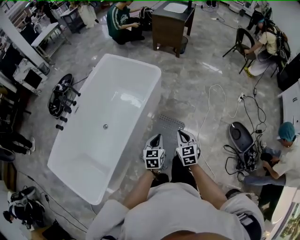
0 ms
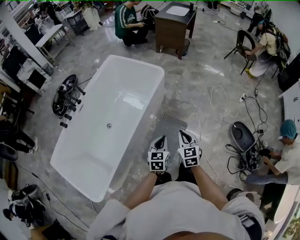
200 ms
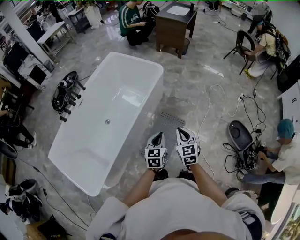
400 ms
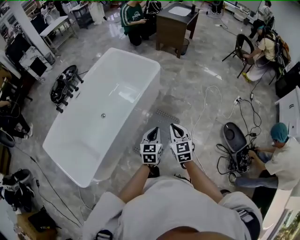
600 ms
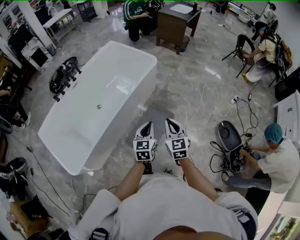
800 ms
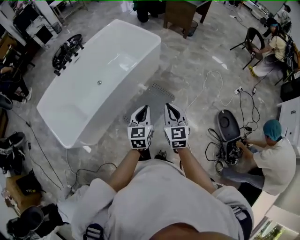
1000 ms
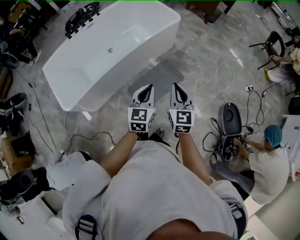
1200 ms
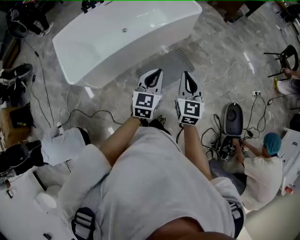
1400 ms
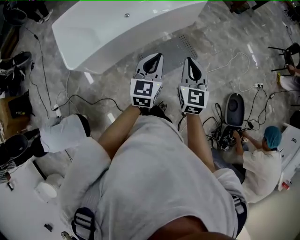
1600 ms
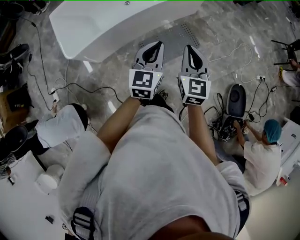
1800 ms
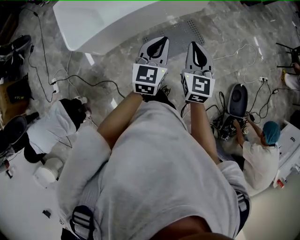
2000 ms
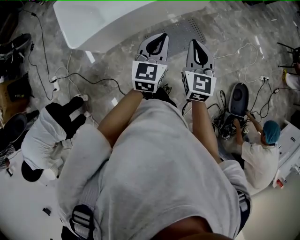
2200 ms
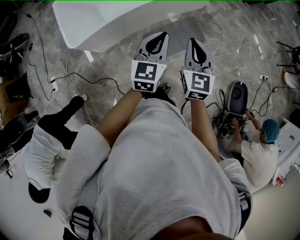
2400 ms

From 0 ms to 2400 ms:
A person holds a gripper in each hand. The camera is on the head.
From 0 ms to 1200 ms: Both grippers move backward, upward and to the right, roughly 20 cm. The left gripper swivels roughly 20 degrees. Meanwhile the right gripper rotates approximately 20 degrees.
From 1200 ms to 2400 ms: Both grippers travel together to the left, roughly 10 cm.

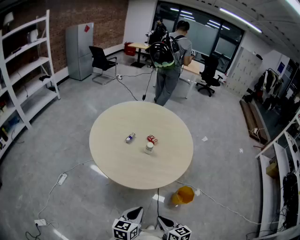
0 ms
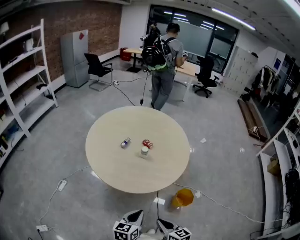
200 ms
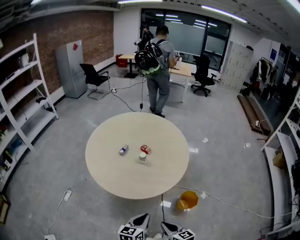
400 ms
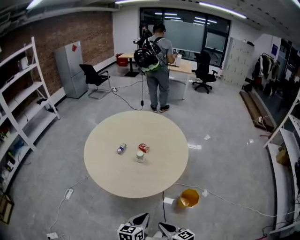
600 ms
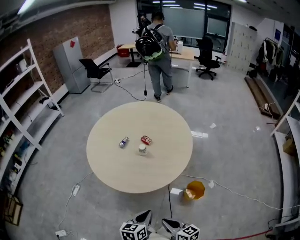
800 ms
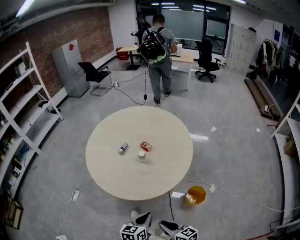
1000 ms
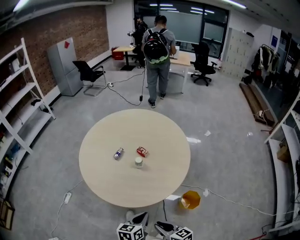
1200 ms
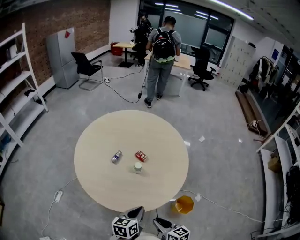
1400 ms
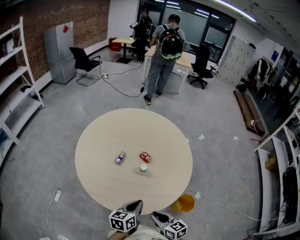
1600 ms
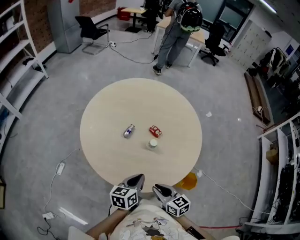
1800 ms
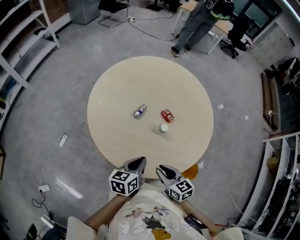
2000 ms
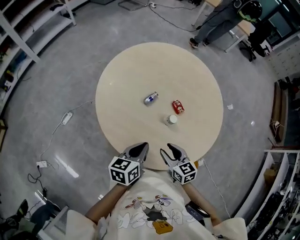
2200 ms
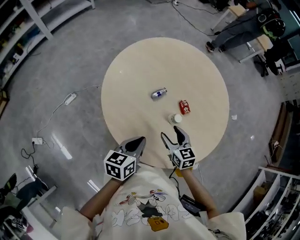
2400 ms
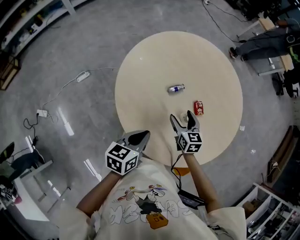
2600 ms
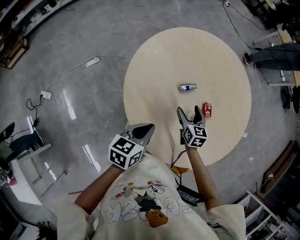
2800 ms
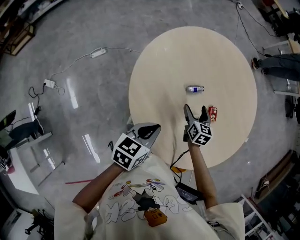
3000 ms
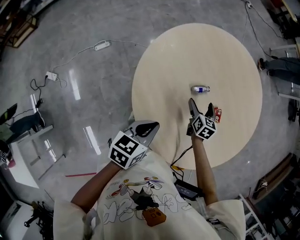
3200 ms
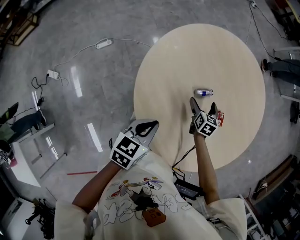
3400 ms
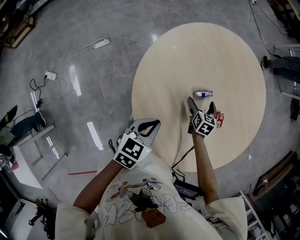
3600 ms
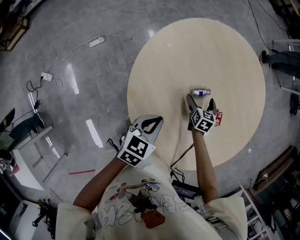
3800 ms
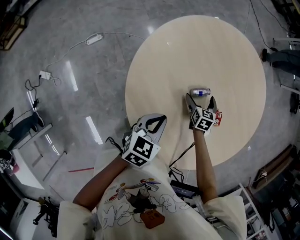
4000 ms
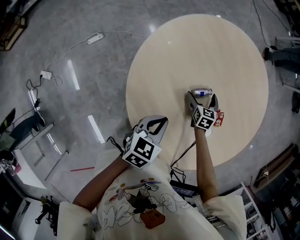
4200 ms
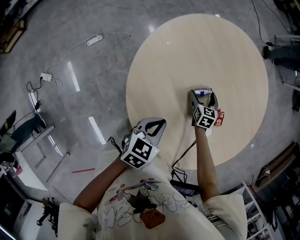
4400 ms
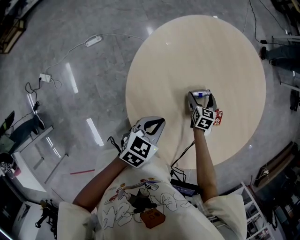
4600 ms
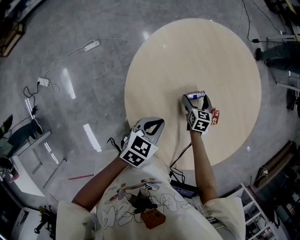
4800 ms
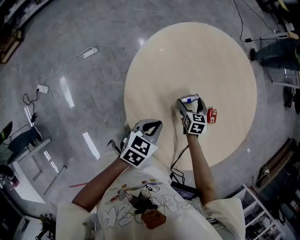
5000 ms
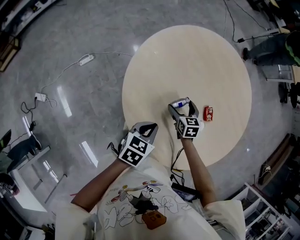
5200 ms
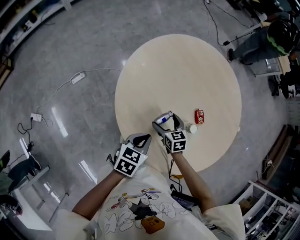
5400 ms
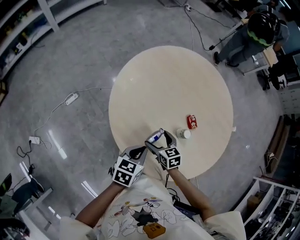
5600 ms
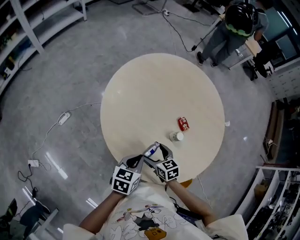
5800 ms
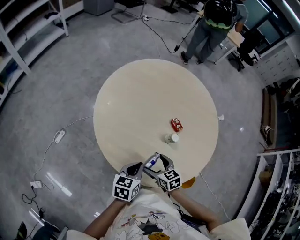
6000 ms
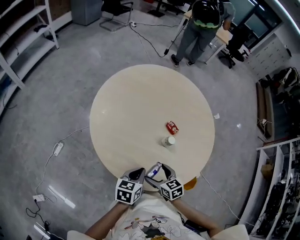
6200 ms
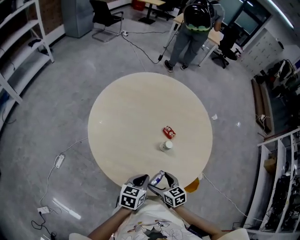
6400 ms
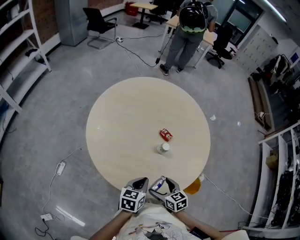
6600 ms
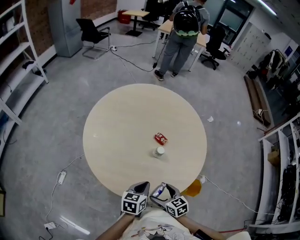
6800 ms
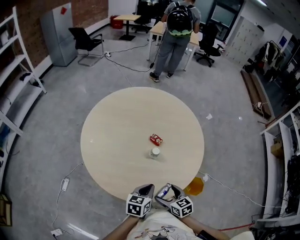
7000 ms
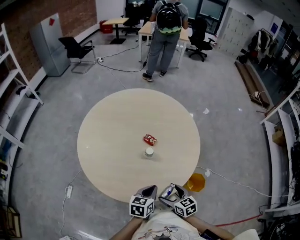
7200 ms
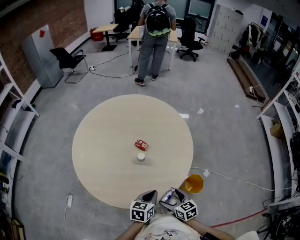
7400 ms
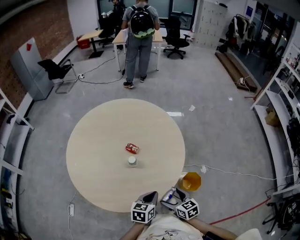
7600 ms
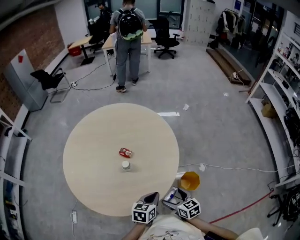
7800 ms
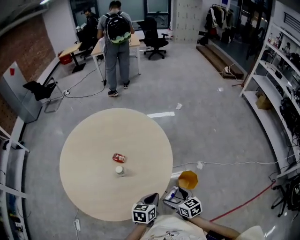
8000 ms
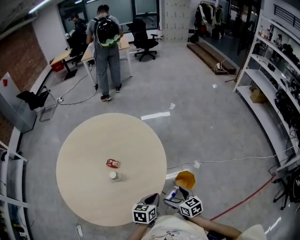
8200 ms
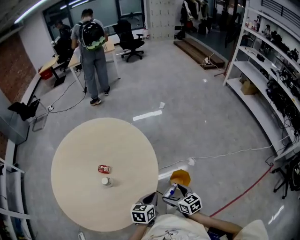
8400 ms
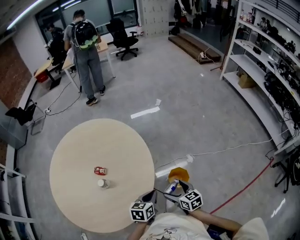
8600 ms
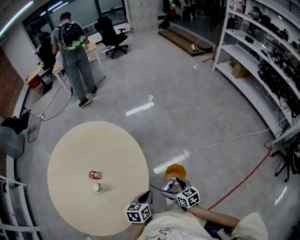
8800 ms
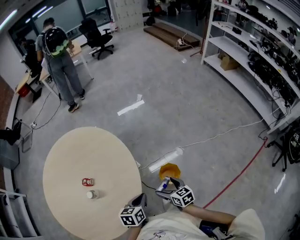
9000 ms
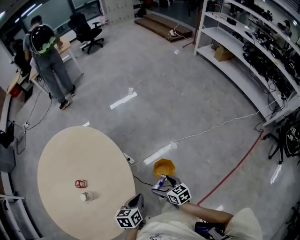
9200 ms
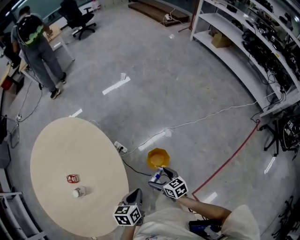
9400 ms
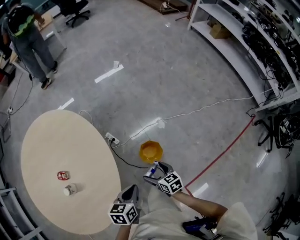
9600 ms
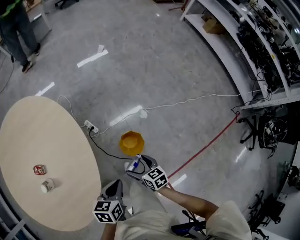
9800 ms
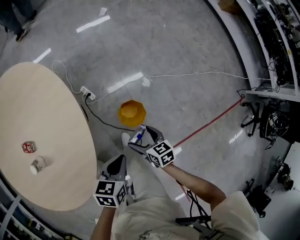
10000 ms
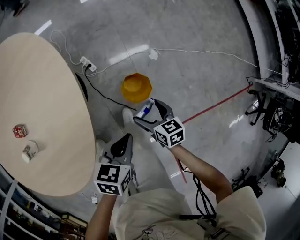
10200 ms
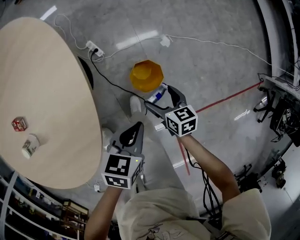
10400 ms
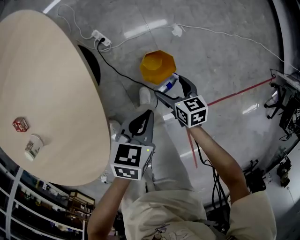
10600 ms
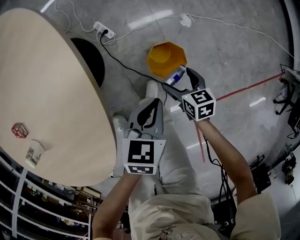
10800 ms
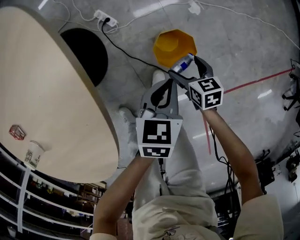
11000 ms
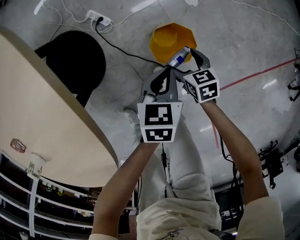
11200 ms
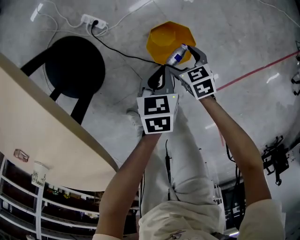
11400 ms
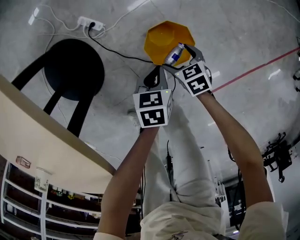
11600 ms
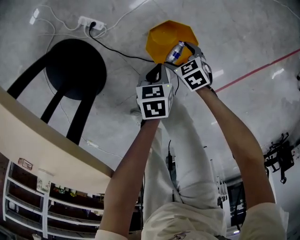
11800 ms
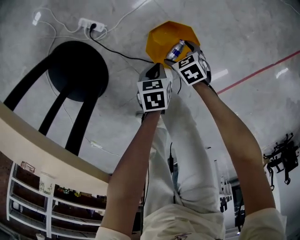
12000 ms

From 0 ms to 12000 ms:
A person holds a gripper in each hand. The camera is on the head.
From 0 ms to 1600 ms: The two grippers go roughly 20 cm forward.
From 1600 ms to 3000 ms: The left gripper heads to the left and forward, covering approximately 15 cm, and changes its angle by approximately 30 degrees, while the right gripper travels forward by approximately 35 cm, rotates roughly 20 degrees, and opens.
From 3000 ms to 4400 ms: The left gripper moves forward and downward, some 10 cm, while the right gripper shifts some 15 cm downward and forward.
From 4400 ms to 6000 ms: The left gripper goes about 5 cm backward, while the right gripper goes roughly 30 cm backward and upward.
From 6000 ms to 7600 ms: The right gripper shifts by approximately 30 cm, and rotates approximately 30 degrees, while the left gripper moves roughly 30 cm, and changes its angle by about 30 degrees.
From 7600 ms to 9000 ms: Both grippers travel together to the right and forward, roughly 20 cm. The right gripper rotates about 30 degrees.
From 9000 ms to 10400 ms: The right gripper shifts approximately 25 cm downward. The left gripper is displaced downward and to the right by approximately 25 cm.
From 10400 ms to 12000 ms: Both grippers move downward, about 40 cm. The right gripper turns by about 20 degrees. Meanwhile the left gripper swivels approximately 20 degrees.

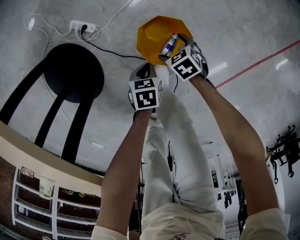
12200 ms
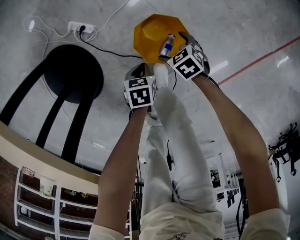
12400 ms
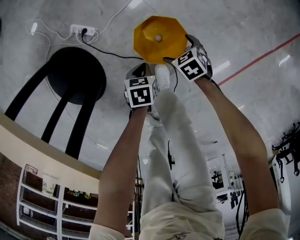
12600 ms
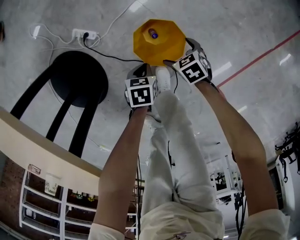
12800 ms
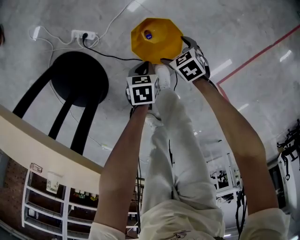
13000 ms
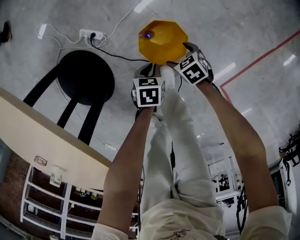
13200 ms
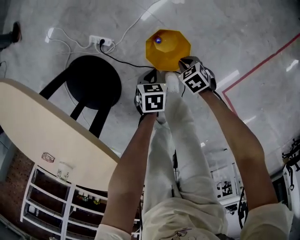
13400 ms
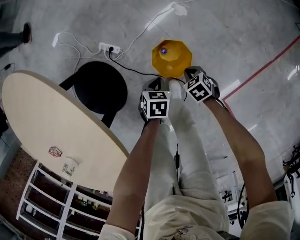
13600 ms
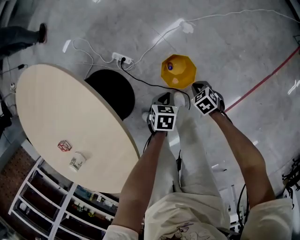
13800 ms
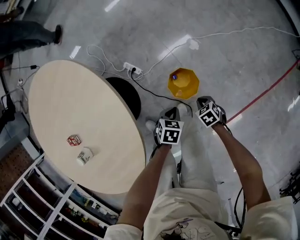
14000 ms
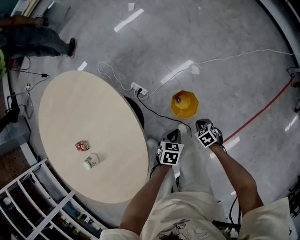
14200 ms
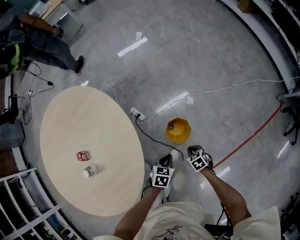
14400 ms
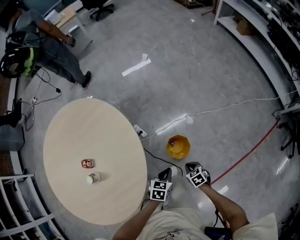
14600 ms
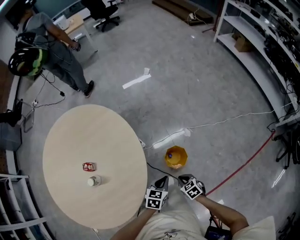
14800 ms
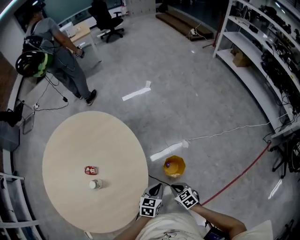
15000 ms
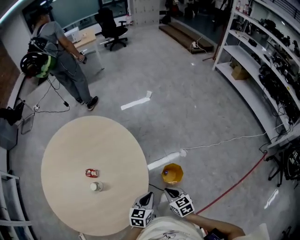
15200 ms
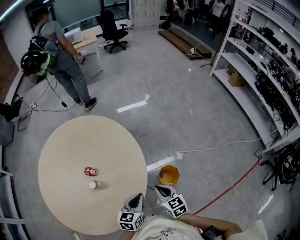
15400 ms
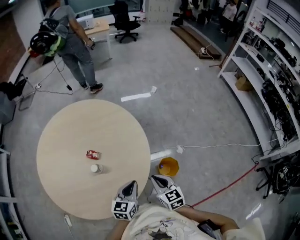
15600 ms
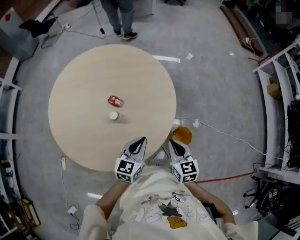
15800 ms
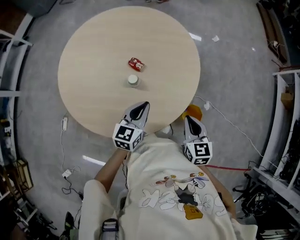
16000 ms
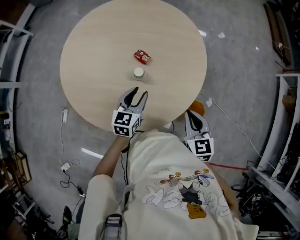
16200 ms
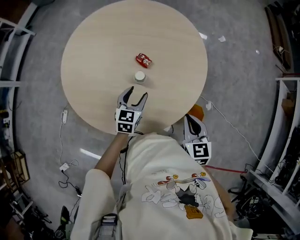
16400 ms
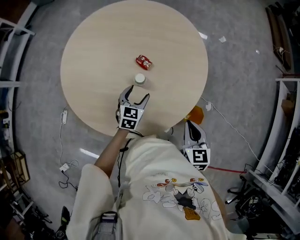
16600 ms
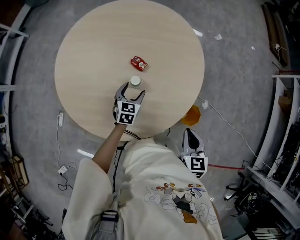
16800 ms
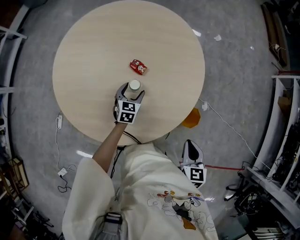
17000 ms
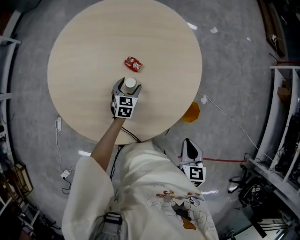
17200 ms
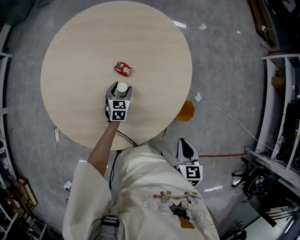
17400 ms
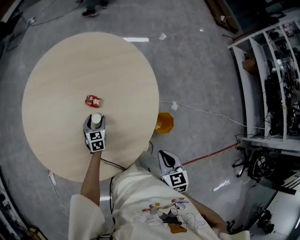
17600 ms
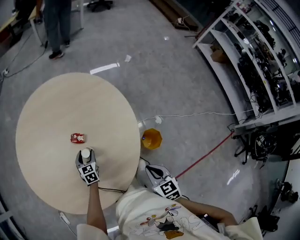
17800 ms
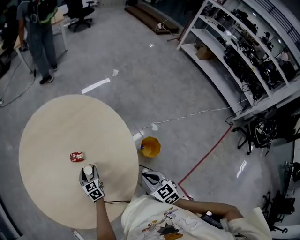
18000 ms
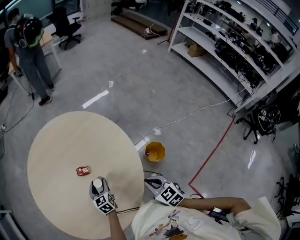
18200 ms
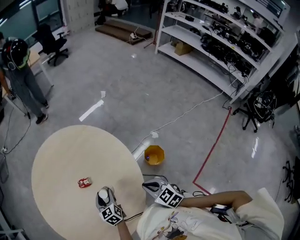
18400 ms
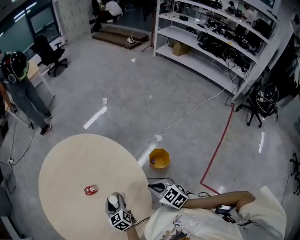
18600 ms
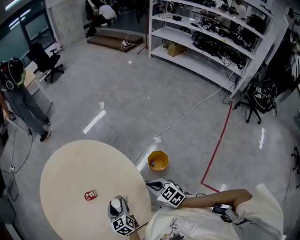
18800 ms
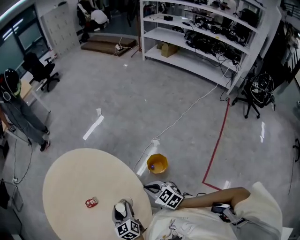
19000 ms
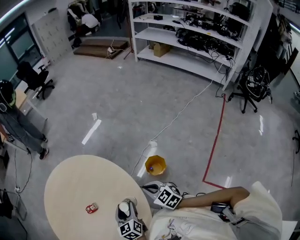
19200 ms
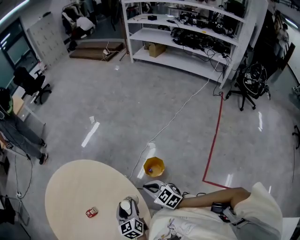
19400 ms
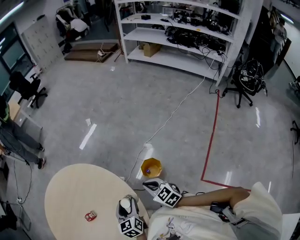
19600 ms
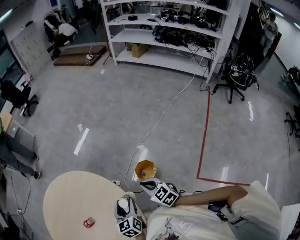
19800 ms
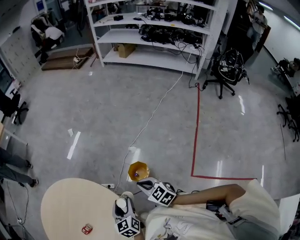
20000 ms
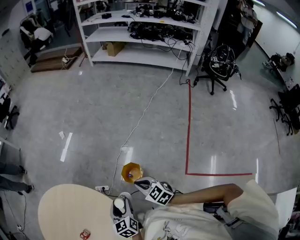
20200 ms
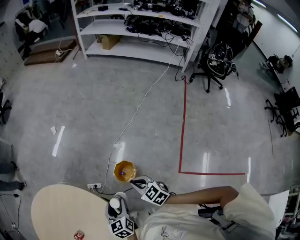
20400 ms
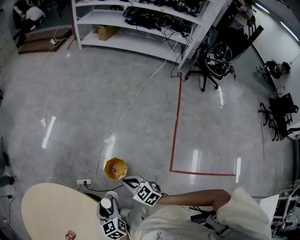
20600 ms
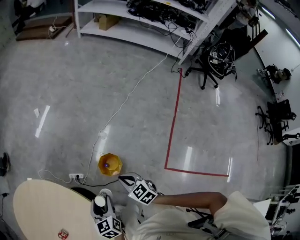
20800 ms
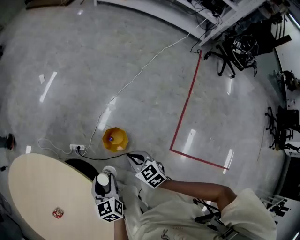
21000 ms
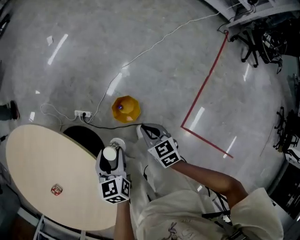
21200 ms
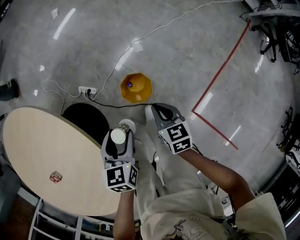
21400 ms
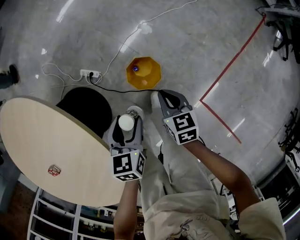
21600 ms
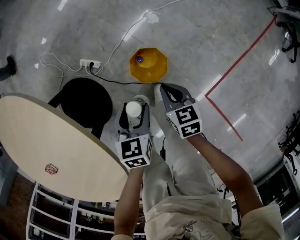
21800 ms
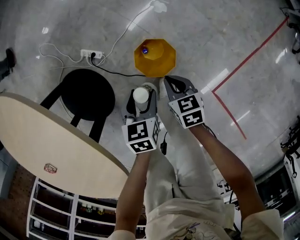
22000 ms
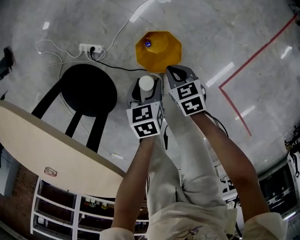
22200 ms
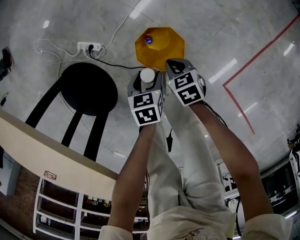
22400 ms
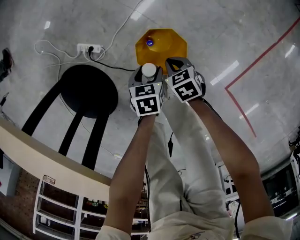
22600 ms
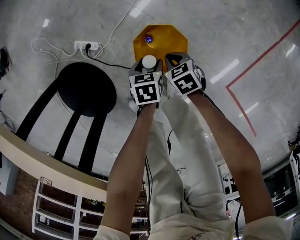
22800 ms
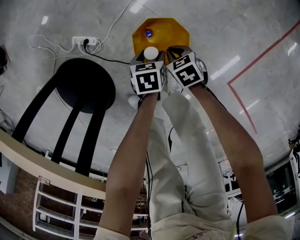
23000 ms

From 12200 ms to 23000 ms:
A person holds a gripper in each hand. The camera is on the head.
From 12200 ms to 13800 ms: The two grippers go some 20 cm upward. The right gripper closes up.
From 13800 ms to 15200 ms: The left gripper heads upward, covering roughly 40 cm, and tips its fingers upward by about 40 degrees. The right gripper travels upward and to the left by roughly 50 cm, and tips its fingers upward by approximately 30 degrees.
From 15200 ms to 16800 ms: The right gripper moves about 15 cm. Meanwhile the left gripper changes place by roughly 35 cm, rotates roughly 40 degrees, and opens.
From 16800 ms to 18400 ms: The left gripper is displaced upward and to the right by about 10 cm.
From 18400 ms to 20000 ms: The left gripper moves roughly 30 cm, and rotates some 30 degrees; the right gripper shifts by some 20 cm, and turns by about 30 degrees.
From 20000 ms to 21400 ms: Both grippers travel together downward and forward, roughly 25 cm. The right gripper turns by roughly 20 degrees.
From 21400 ms to 23000 ms: The two grippers go roughly 40 cm downward. The right gripper turns by roughly 30 degrees. Meanwhile the left gripper rotates approximately 30 degrees.
